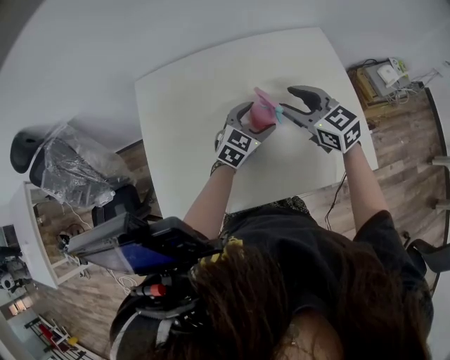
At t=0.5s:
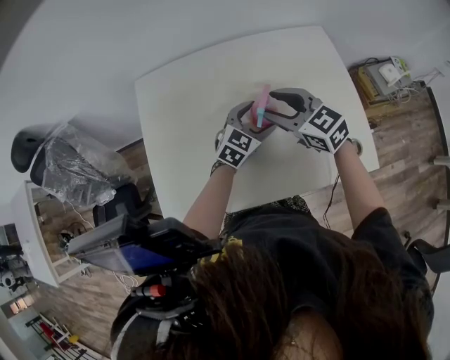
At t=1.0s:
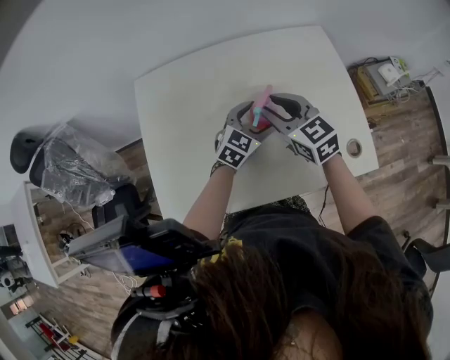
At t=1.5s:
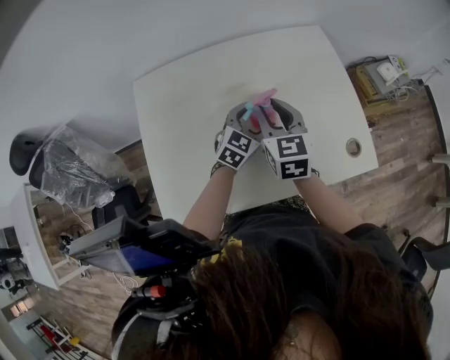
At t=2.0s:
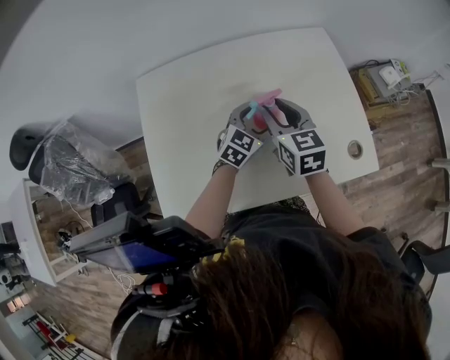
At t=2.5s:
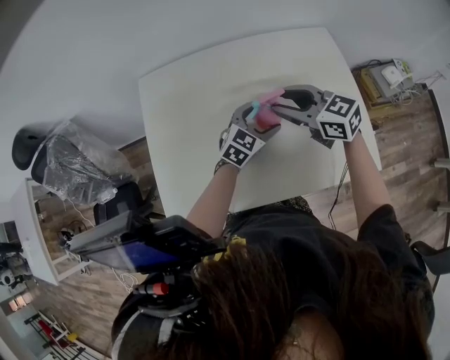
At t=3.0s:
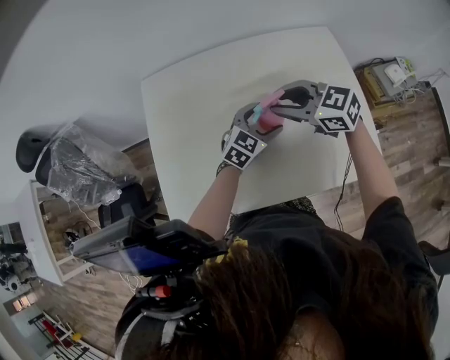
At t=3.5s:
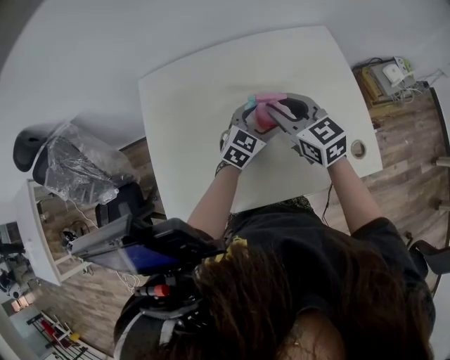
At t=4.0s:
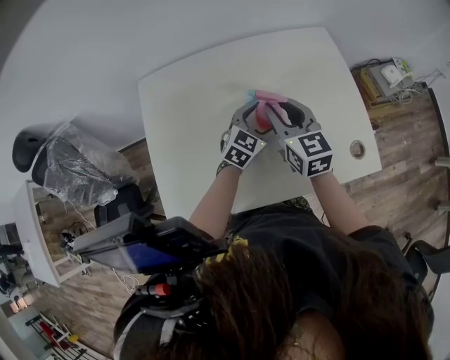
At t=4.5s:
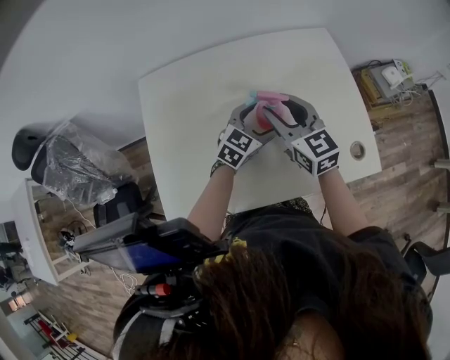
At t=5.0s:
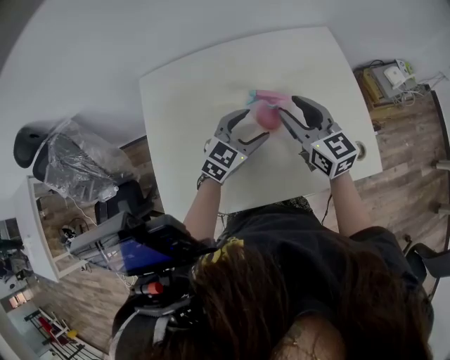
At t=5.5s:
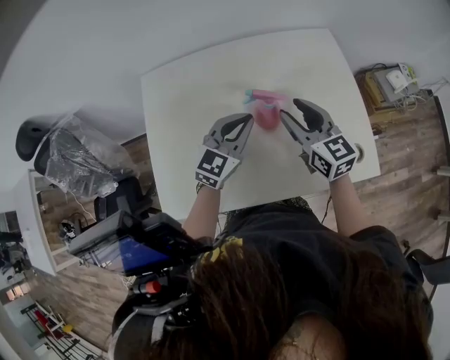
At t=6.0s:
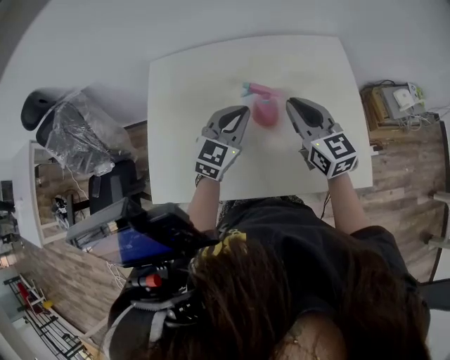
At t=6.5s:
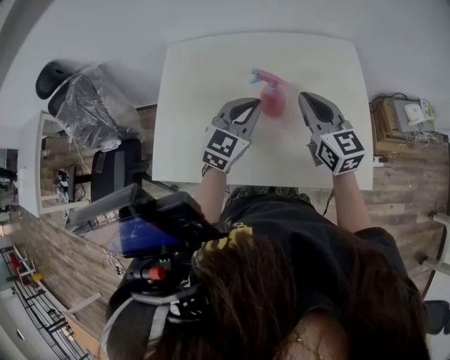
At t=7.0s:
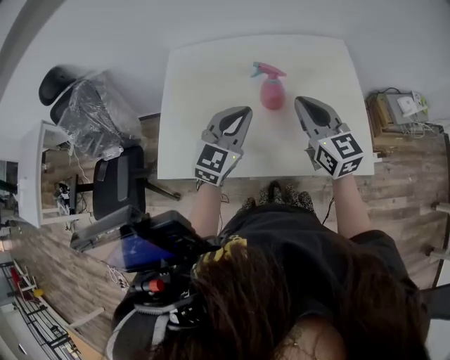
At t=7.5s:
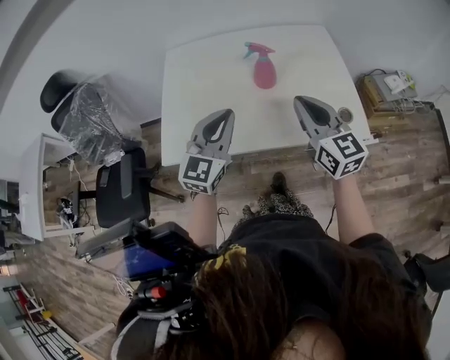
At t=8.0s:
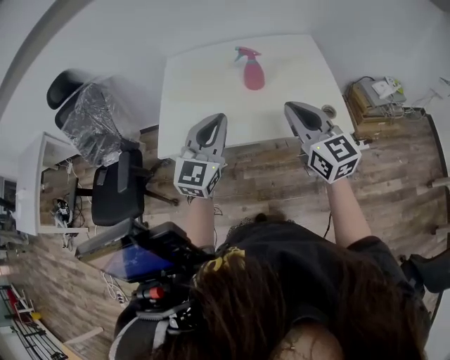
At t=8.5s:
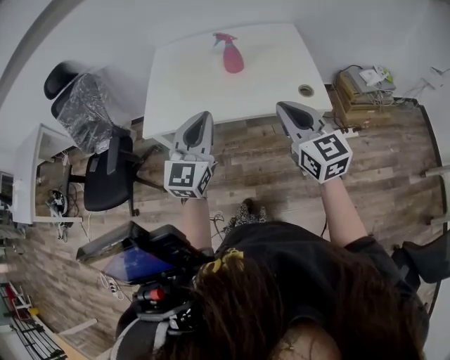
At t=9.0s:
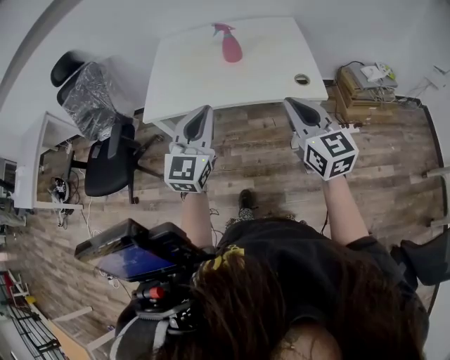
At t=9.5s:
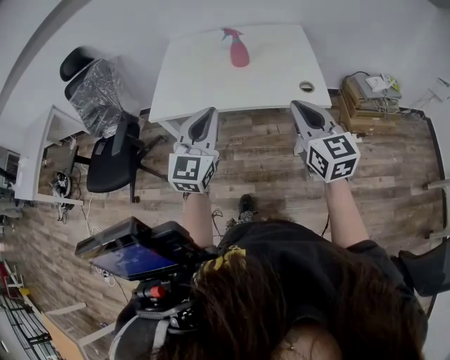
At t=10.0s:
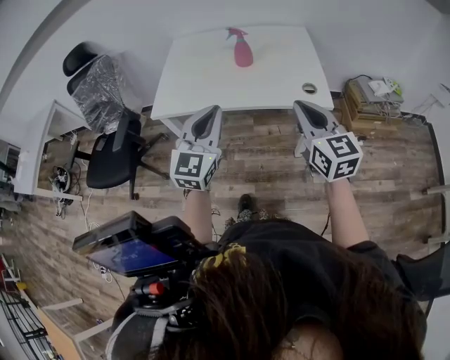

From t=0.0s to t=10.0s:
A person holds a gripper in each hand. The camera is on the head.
From t=0.0s to t=2.0s: The right gripper rotates about 30 degrees.
From t=4.0s to t=6.0s: The left gripper goes about 10 cm upward, and closes; the right gripper moves to the right, some 5 cm, and closes.
From t=6.0s to t=8.0s: The left gripper moves backward and upward, approximately 30 cm; the right gripper moves backward, roughly 25 cm.
From t=8.0s to t=10.0s: The left gripper travels backward by about 15 cm. The right gripper shifts some 15 cm backward and to the right.

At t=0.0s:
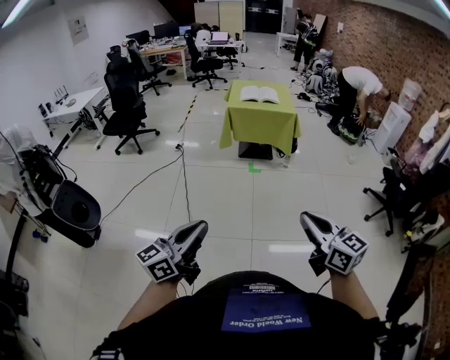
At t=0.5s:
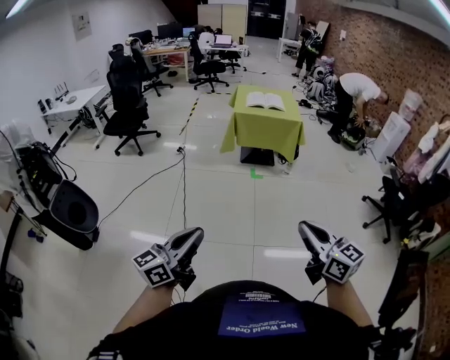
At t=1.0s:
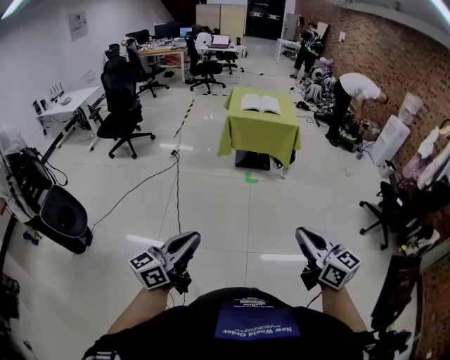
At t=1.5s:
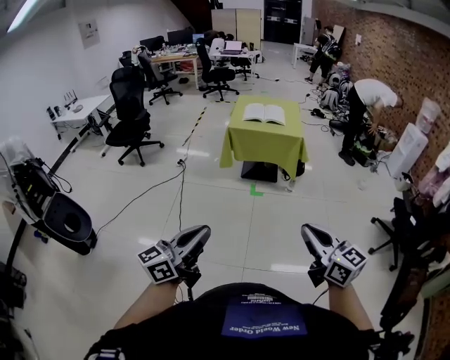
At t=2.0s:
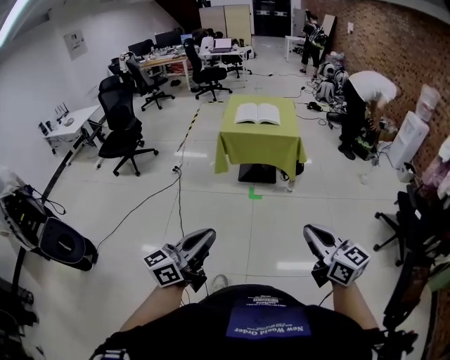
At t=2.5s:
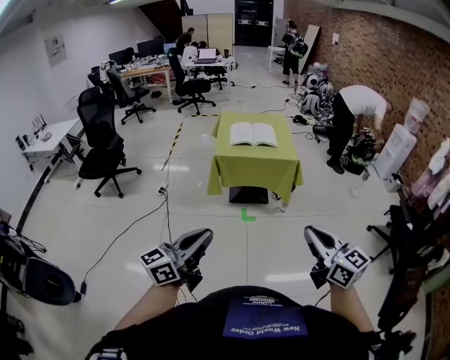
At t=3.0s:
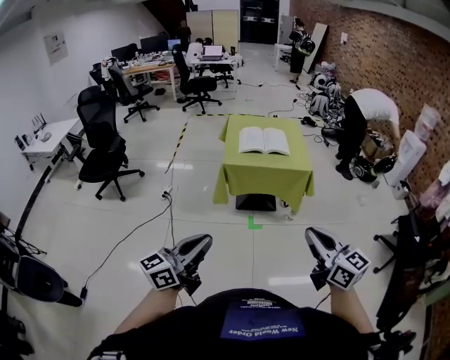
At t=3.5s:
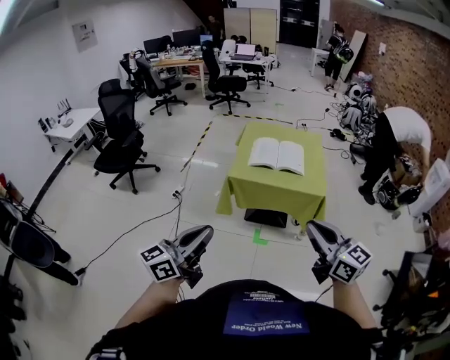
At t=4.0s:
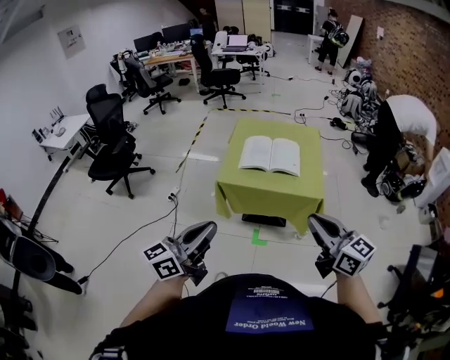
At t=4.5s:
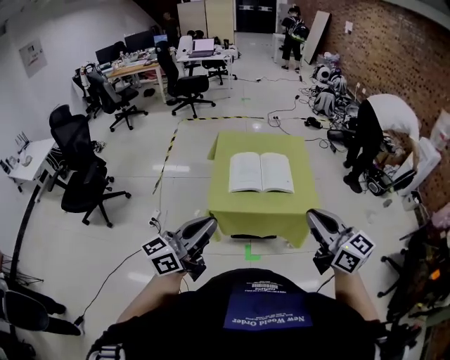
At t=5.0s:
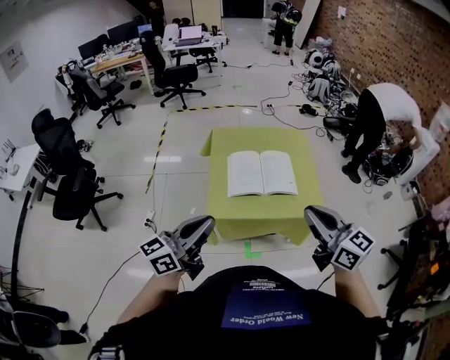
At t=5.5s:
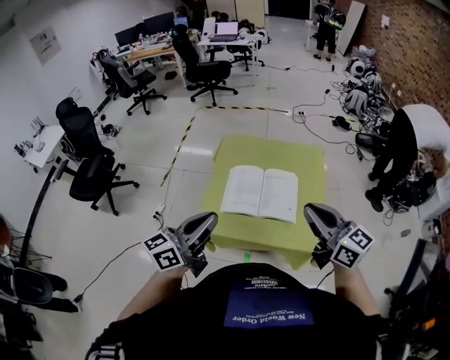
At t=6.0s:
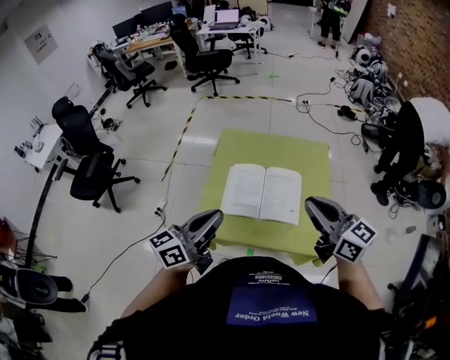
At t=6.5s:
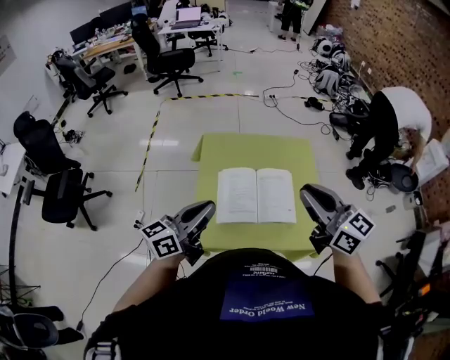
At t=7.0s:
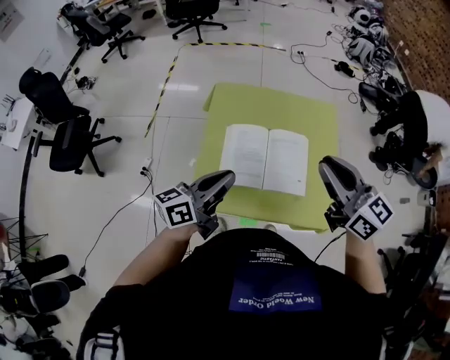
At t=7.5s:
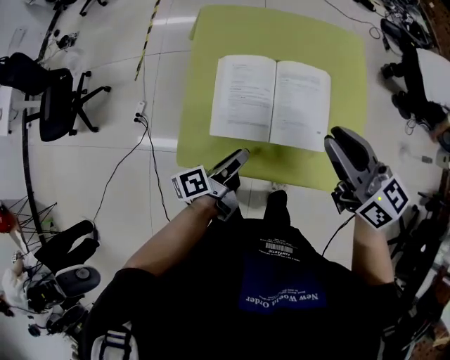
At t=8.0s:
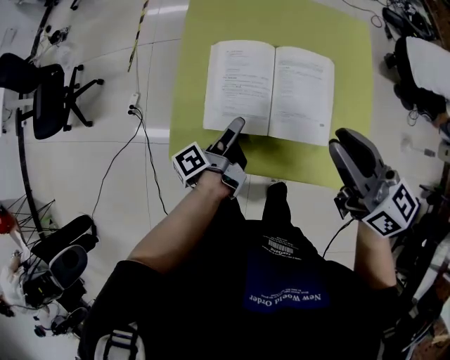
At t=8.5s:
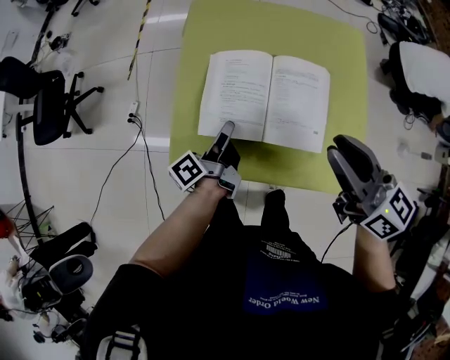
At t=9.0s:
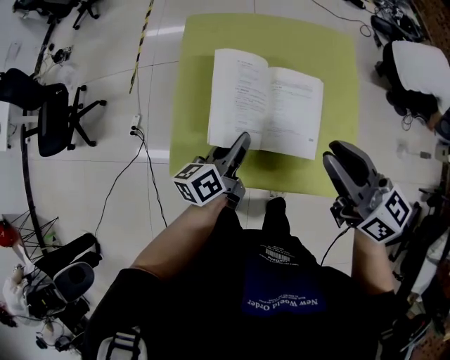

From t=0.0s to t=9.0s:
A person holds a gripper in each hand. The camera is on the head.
From t=0.0s to t=2.0s: The grippers both shift forward and to the right by approximately 30 cm.
From t=2.0s to t=4.5s: The two grippers travel together, forward, some 70 cm.
From t=4.5s to t=7.0s: Both grippers move forward, roughly 35 cm. The left gripper changes its angle by about 20 degrees.
From t=7.0s to t=9.0s: The left gripper is displaced downward and to the right by about 20 cm, changes its angle by some 20 degrees, and opens and closes again; the right gripper shifts approximately 10 cm downward.

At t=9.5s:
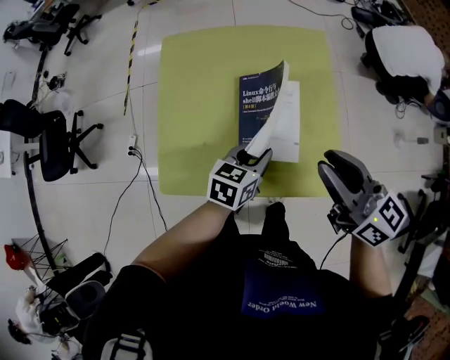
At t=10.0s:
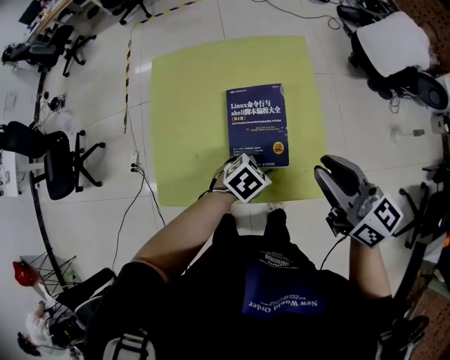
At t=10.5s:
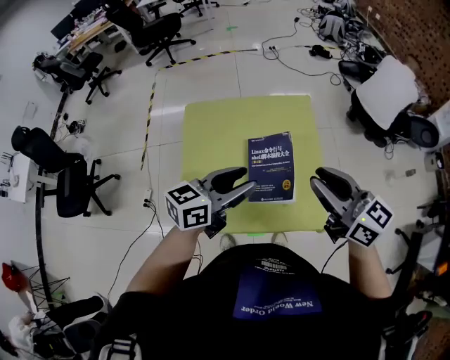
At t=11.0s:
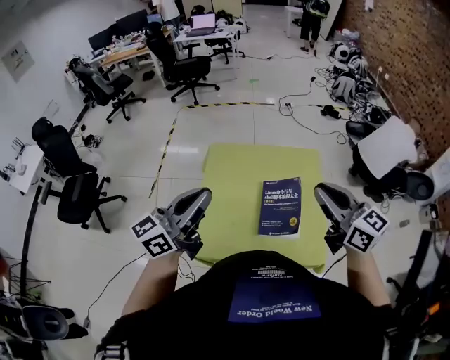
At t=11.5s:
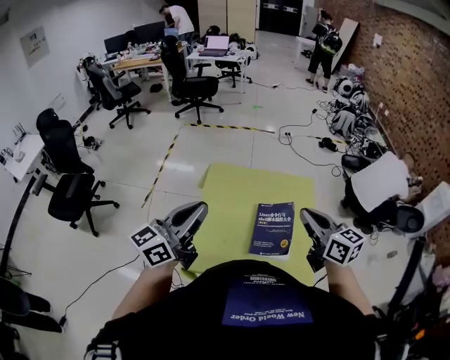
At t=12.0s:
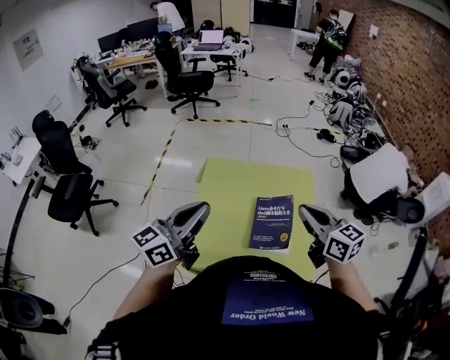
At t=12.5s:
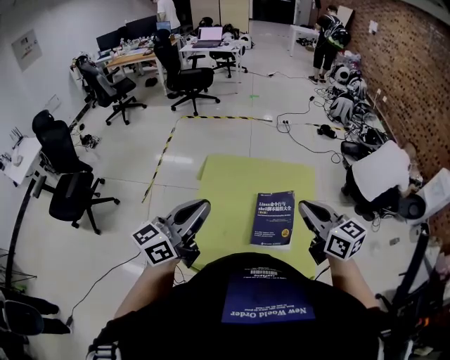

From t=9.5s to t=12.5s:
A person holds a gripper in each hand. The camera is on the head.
From t=9.5s to t=11.0s: The right gripper travels upward by some 15 cm, while the left gripper goes about 40 cm upward and to the left, points its fingers some 50 degrees further upward, and opens, then closes again.
From t=11.0s to t=12.5s: There are only small adjustments of the grippers.

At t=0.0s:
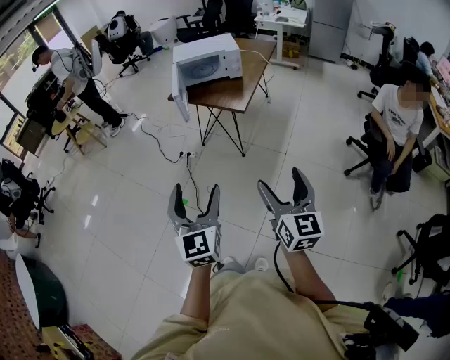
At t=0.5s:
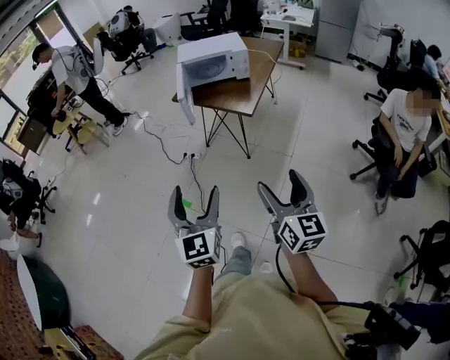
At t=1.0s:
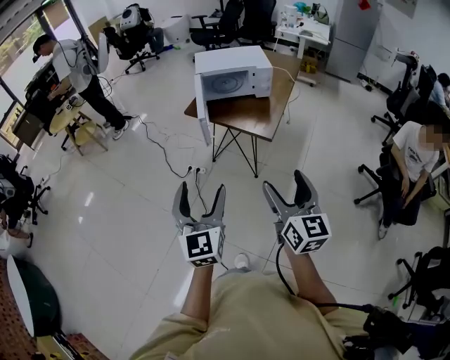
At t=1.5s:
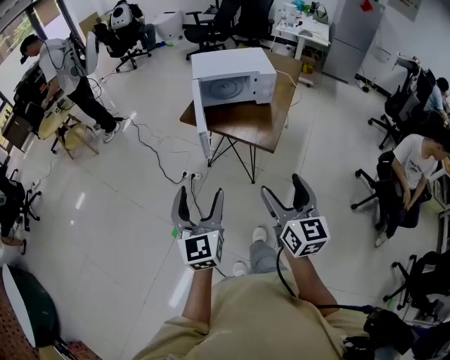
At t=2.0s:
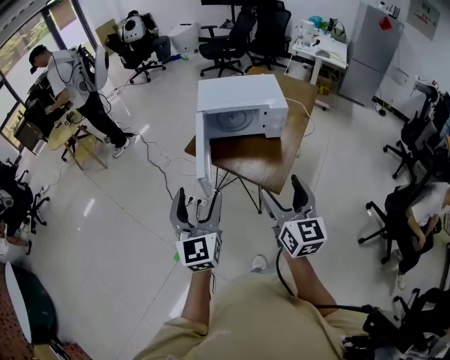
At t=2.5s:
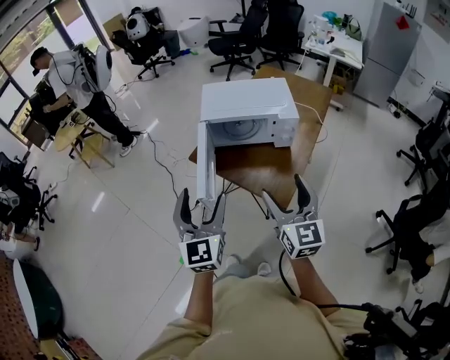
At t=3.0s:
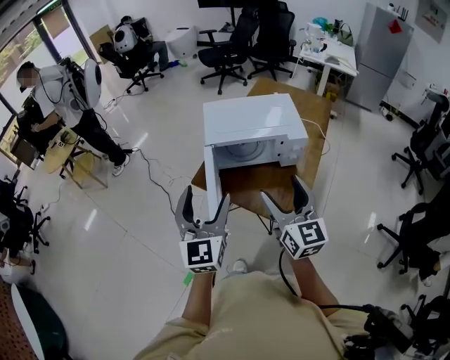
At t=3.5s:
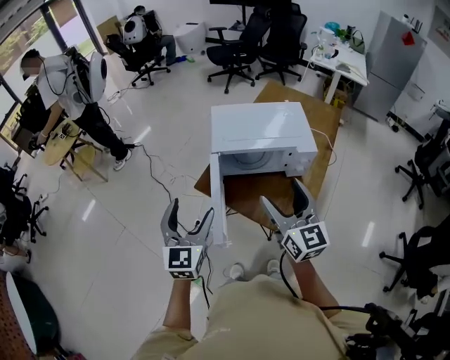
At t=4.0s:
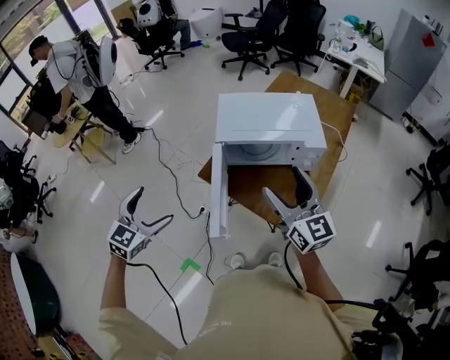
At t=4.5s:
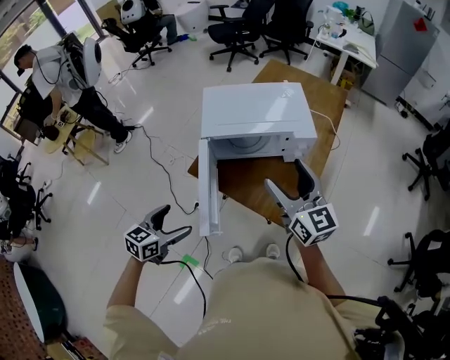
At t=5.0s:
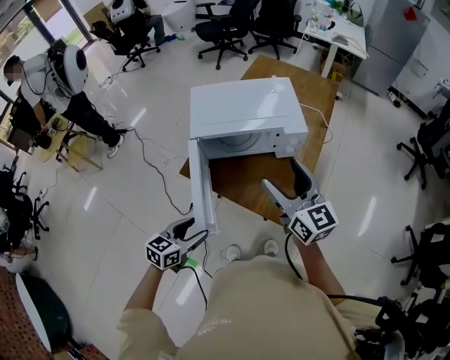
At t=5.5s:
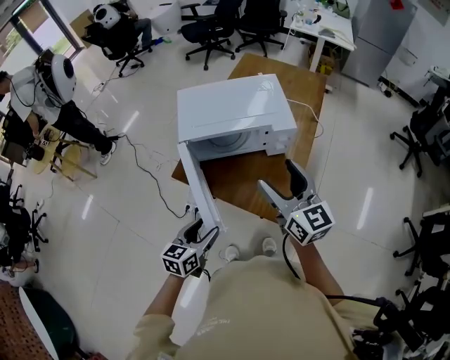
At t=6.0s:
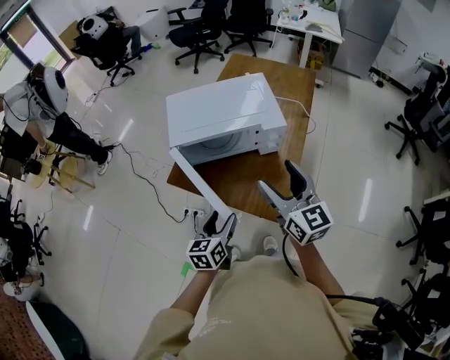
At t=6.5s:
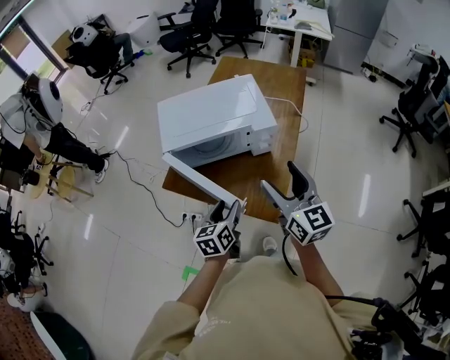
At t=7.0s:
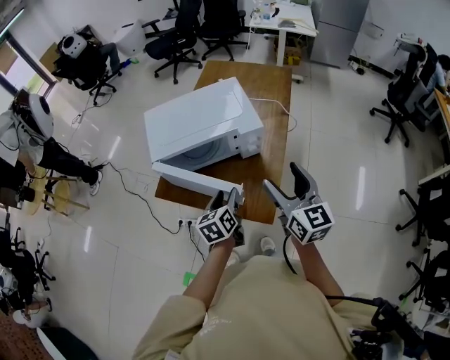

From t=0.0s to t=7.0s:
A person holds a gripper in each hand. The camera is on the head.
From t=0.0s to t=2.0s: The pair of grippers is taken forward, roughly 50 cm.
From t=2.0s to t=3.5s: Both grippers travel together forward, roughly 25 cm.
From t=3.5s to t=5.0s: The left gripper travels downward by some 20 cm, and changes its angle by roughly 50 degrees, while the right gripper travels forward and to the right by approximately 15 cm.
From t=5.0s to t=7.0s: The left gripper shifts some 25 cm to the right and forward, and turns by about 30 degrees; the right gripper goes approximately 10 cm to the right.
